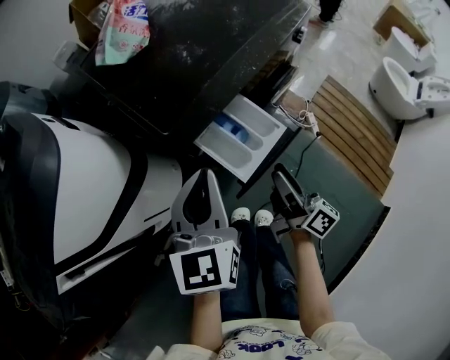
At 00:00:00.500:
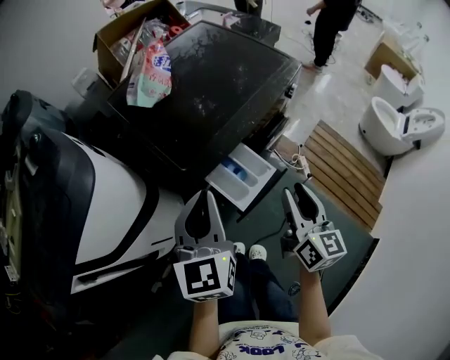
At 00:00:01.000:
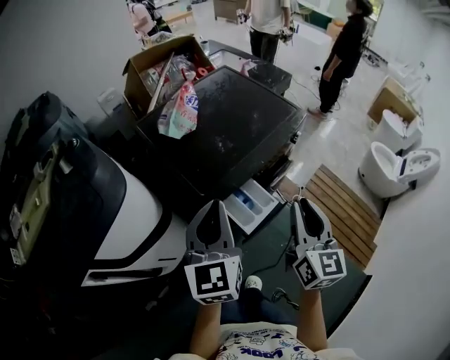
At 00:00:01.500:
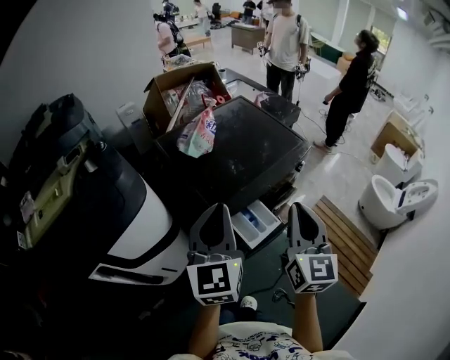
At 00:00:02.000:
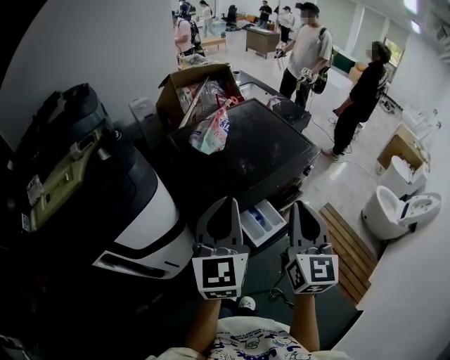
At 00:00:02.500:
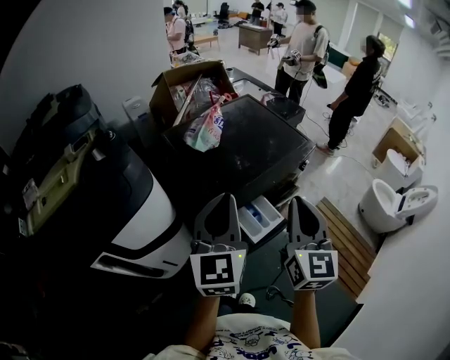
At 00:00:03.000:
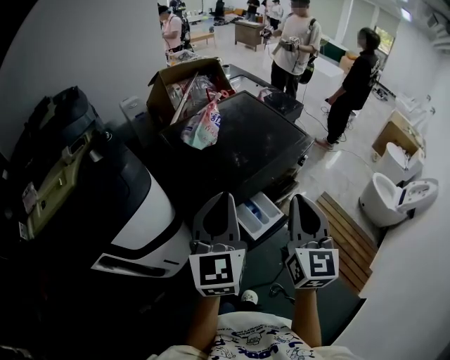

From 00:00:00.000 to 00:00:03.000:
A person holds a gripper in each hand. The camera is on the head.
From 00:00:00.000 to 00:00:01.500: Both grippers travel together upward, about 30 cm. The right gripper rotates around the line of its fingers by about 70 degrees, counterclockwise from behind, and closes.
From 00:00:01.500 to 00:00:03.000: There are only small adjustments of the grippers.

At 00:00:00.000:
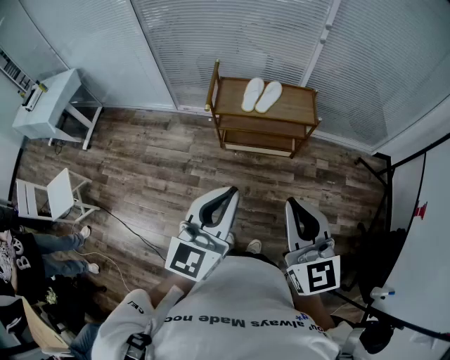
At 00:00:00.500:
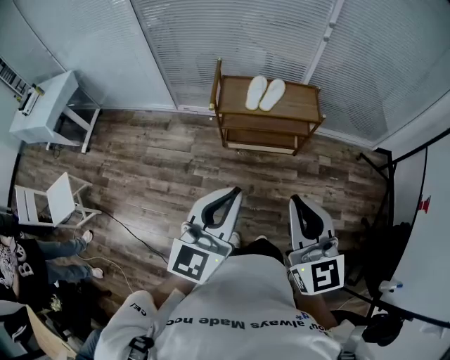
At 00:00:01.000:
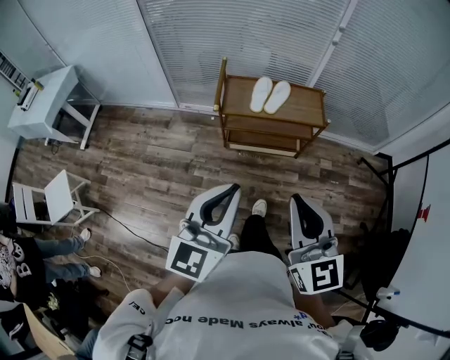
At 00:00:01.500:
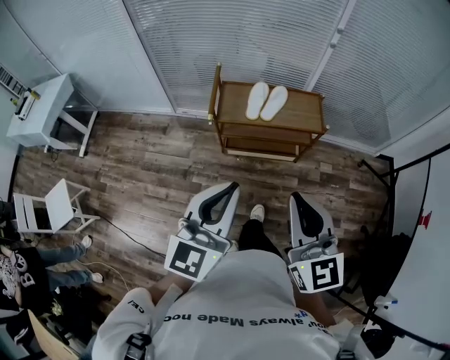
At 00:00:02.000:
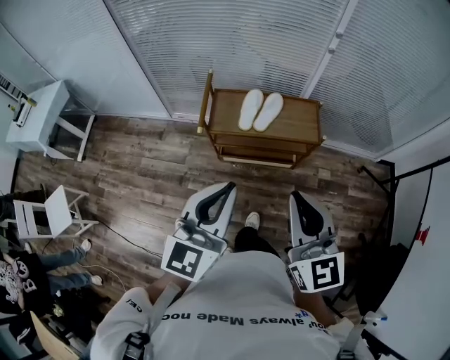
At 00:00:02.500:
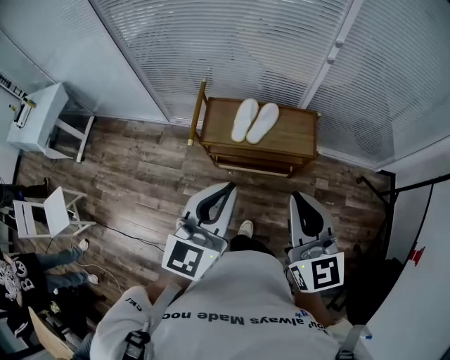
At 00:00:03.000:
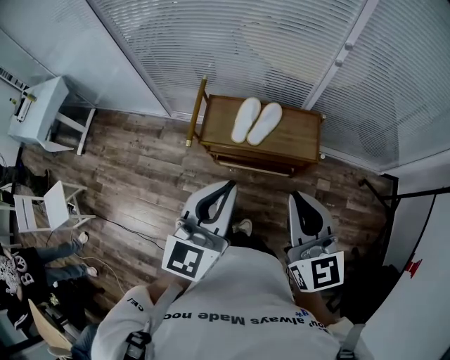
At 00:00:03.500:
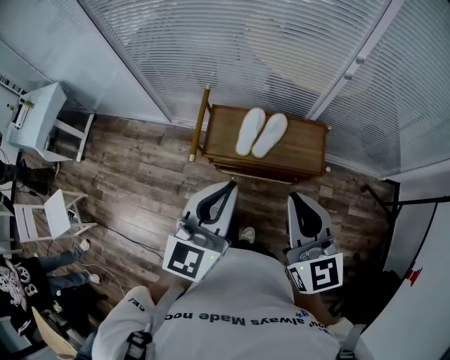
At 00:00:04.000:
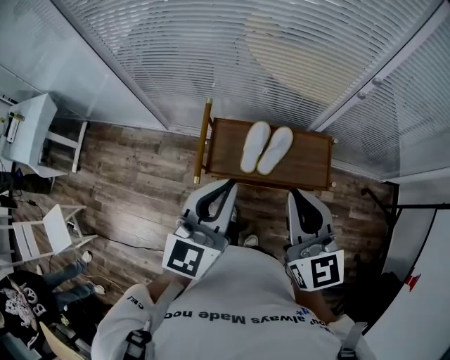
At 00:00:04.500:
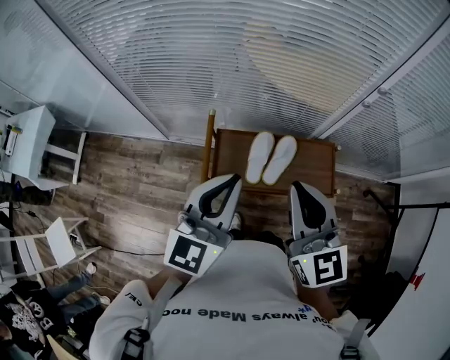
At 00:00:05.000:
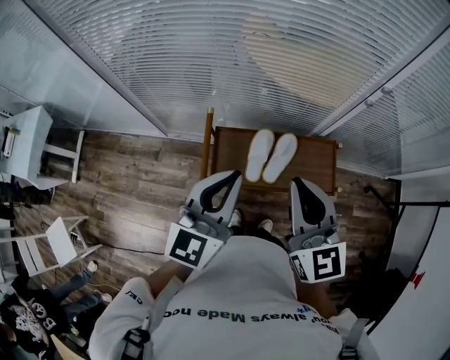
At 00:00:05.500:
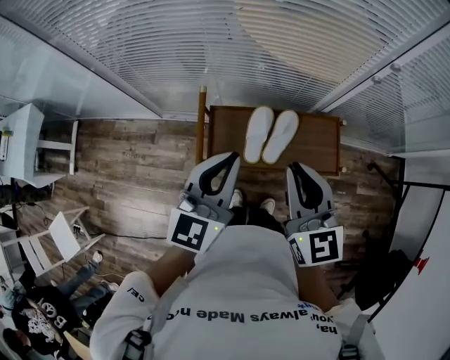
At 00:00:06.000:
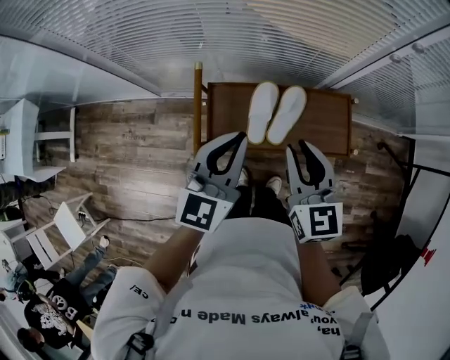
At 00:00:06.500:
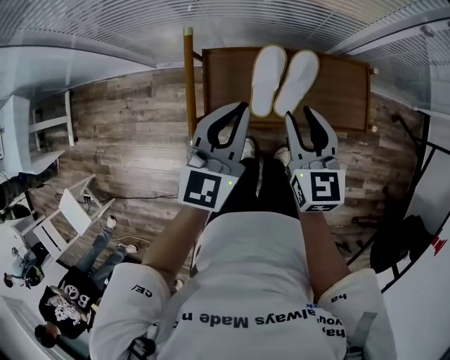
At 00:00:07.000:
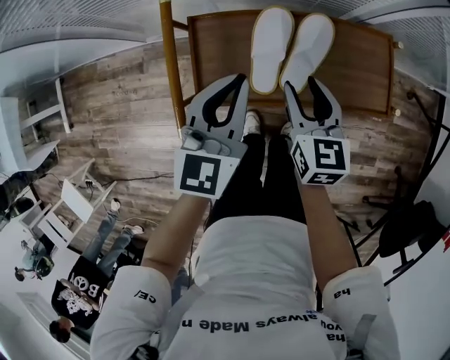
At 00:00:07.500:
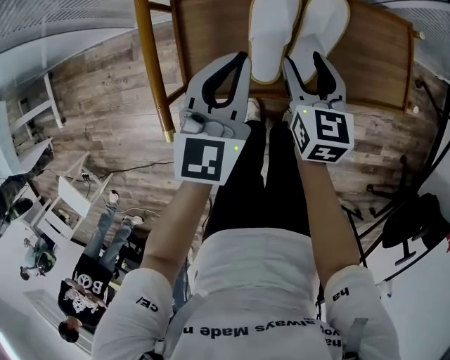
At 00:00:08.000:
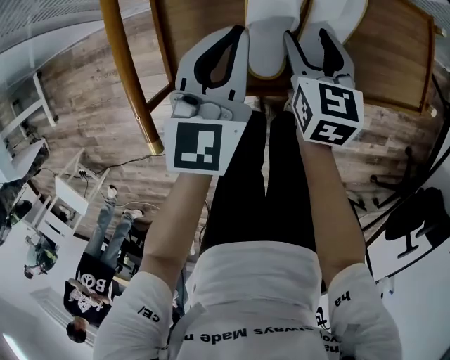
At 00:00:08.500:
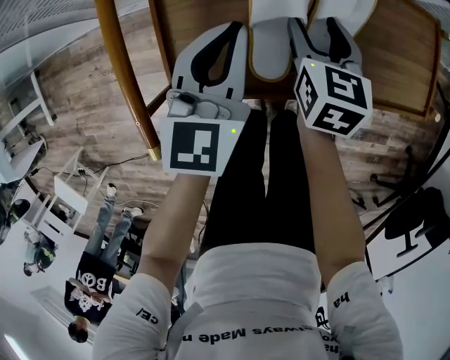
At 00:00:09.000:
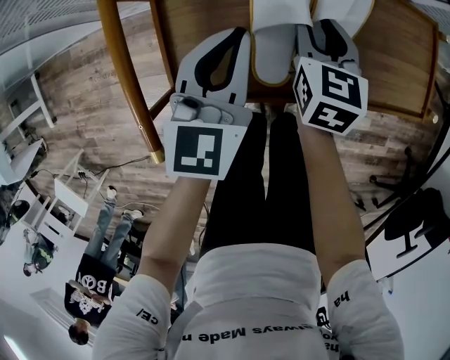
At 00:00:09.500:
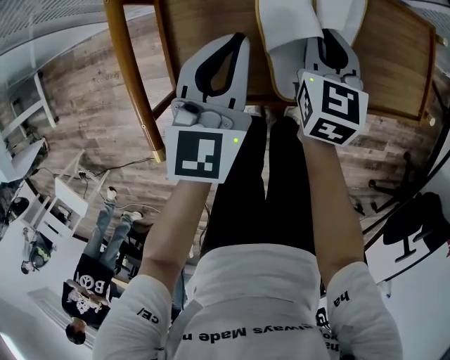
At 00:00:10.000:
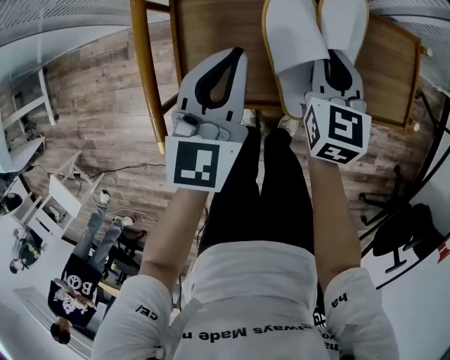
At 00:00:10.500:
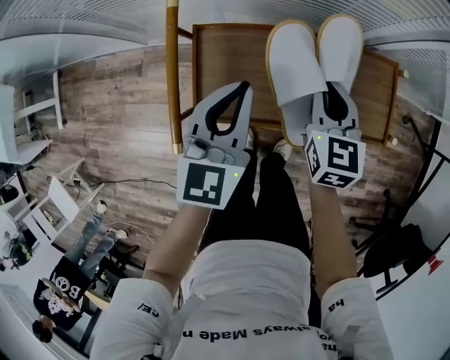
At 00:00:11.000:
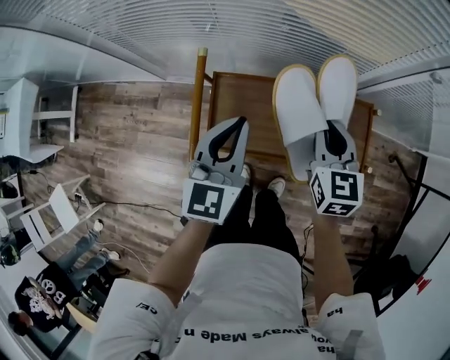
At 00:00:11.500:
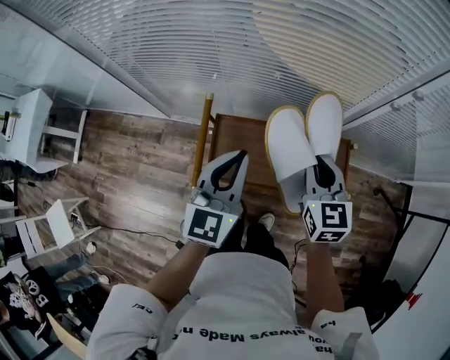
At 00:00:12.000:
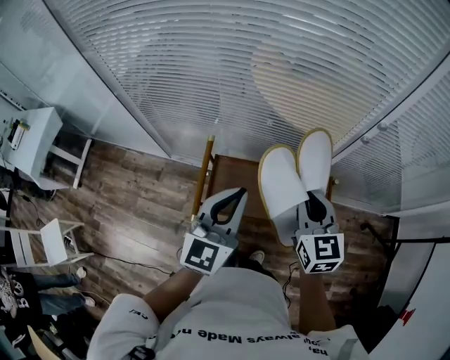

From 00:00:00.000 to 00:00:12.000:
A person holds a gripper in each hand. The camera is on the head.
From 00:00:00.000 to 00:00:02.000: The grippers both shift forward by some 20 cm.
From 00:00:02.000 to 00:00:04.000: Both grippers travel together forward, approximately 30 cm.
From 00:00:04.000 to 00:00:06.000: Both grippers travel together downward and forward, some 15 cm.
From 00:00:06.000 to 00:00:08.000: Both grippers move downward, approximately 35 cm. The right gripper swivels about 20 degrees, and opens.
From 00:00:08.000 to 00:00:10.000: The left gripper changes place by about 5 cm. The right gripper heads upward, covering about 5 cm, and closes up.
From 00:00:10.000 to 00:00:12.000: The grippers both shift upward by about 35 cm. The right gripper changes its angle by roughly 20 degrees.

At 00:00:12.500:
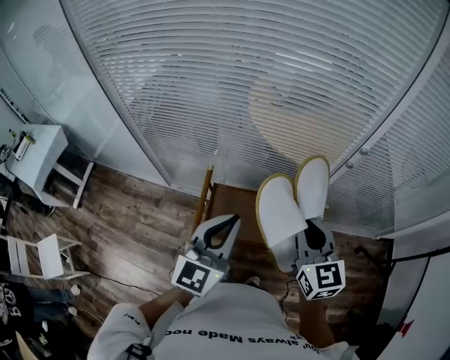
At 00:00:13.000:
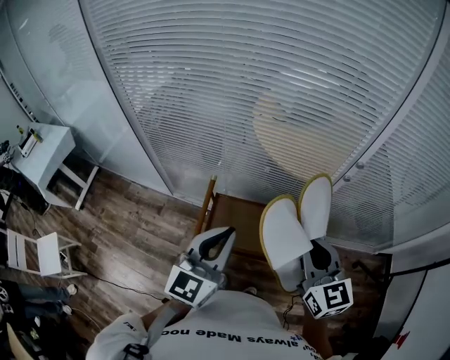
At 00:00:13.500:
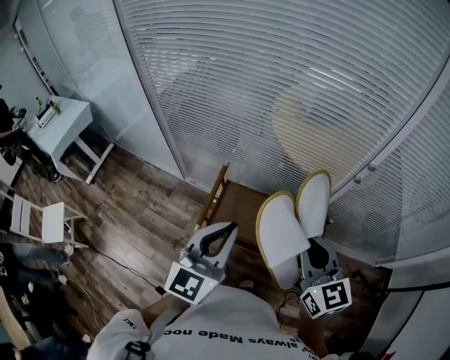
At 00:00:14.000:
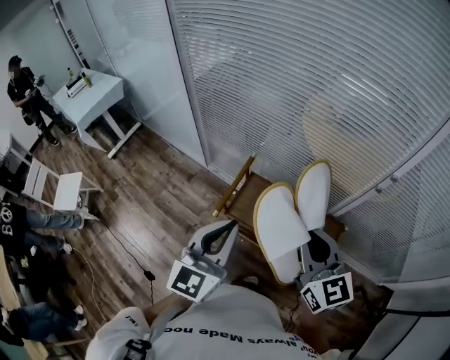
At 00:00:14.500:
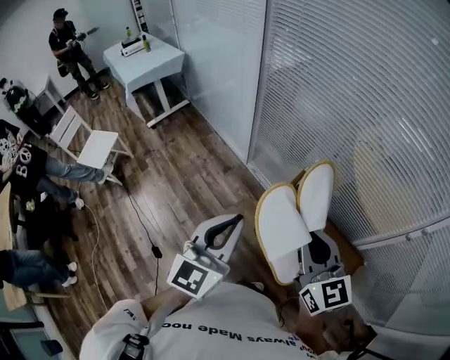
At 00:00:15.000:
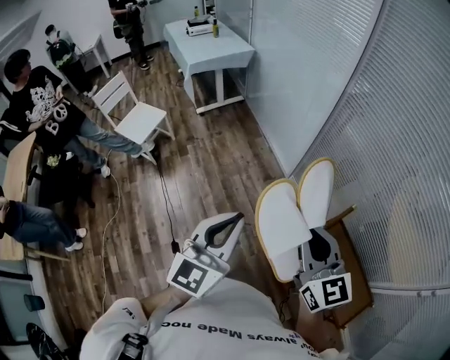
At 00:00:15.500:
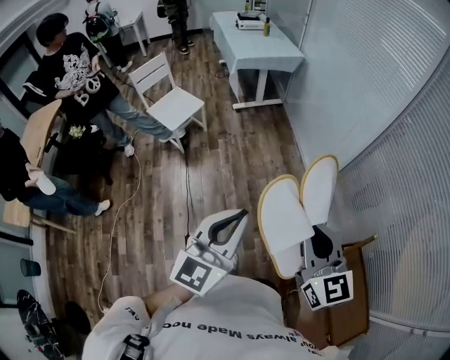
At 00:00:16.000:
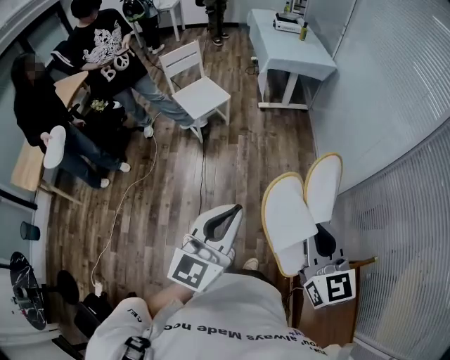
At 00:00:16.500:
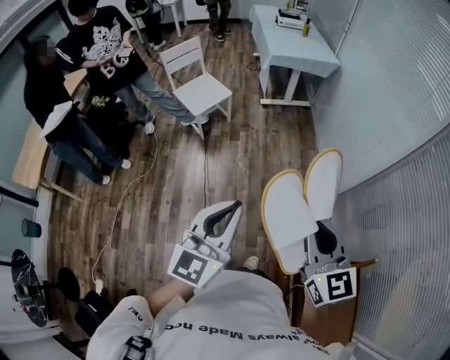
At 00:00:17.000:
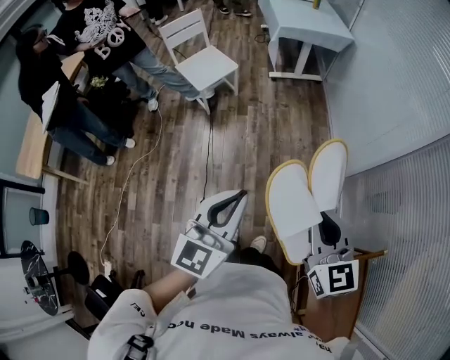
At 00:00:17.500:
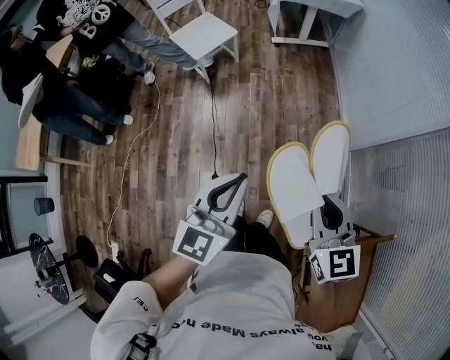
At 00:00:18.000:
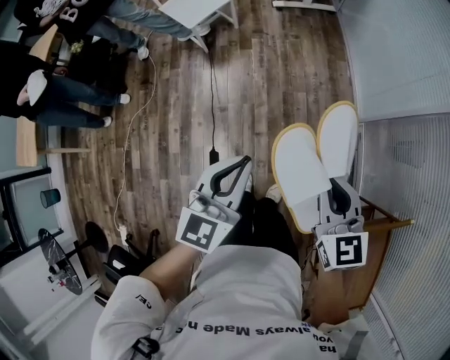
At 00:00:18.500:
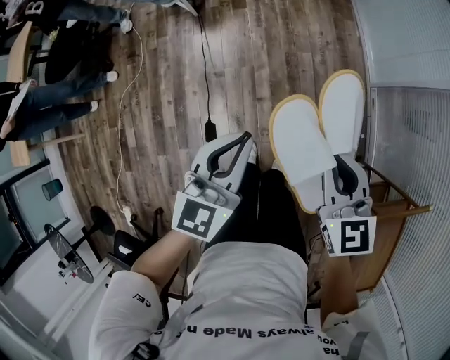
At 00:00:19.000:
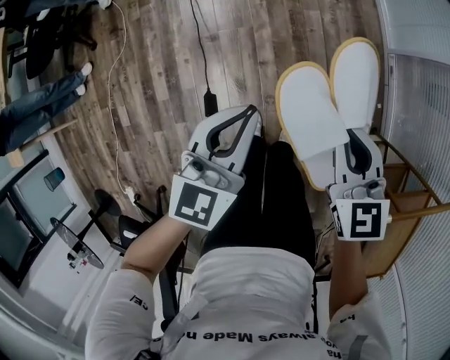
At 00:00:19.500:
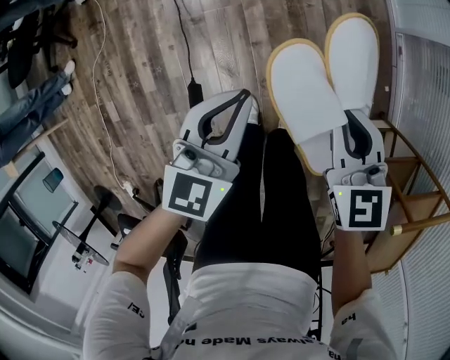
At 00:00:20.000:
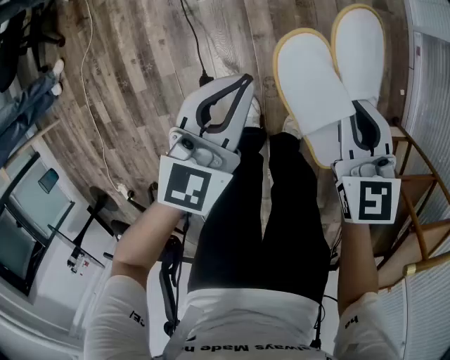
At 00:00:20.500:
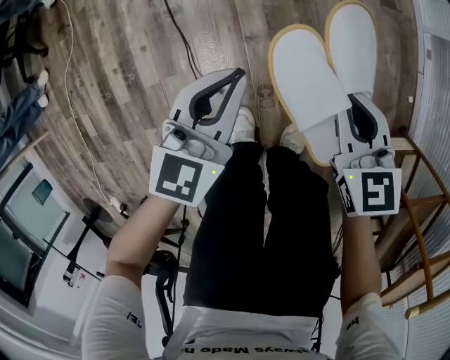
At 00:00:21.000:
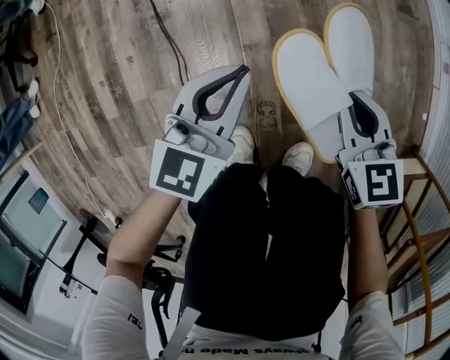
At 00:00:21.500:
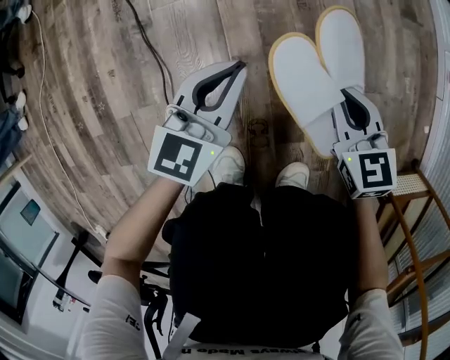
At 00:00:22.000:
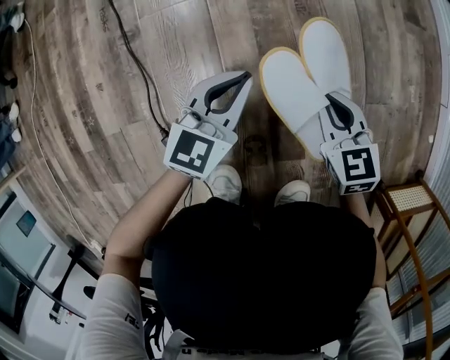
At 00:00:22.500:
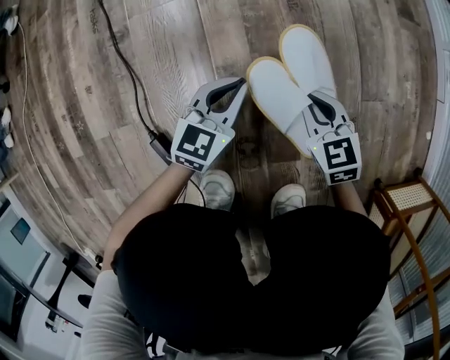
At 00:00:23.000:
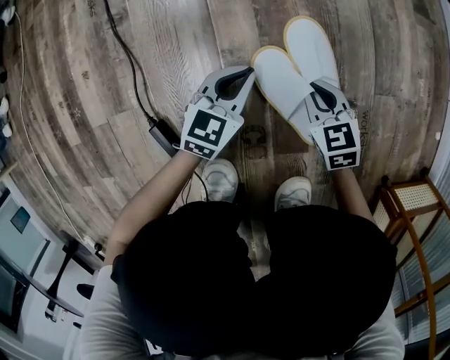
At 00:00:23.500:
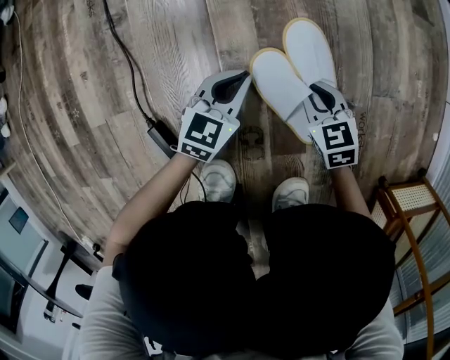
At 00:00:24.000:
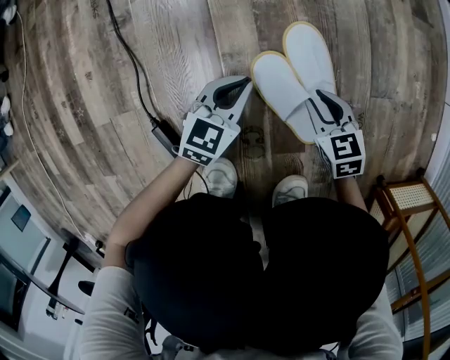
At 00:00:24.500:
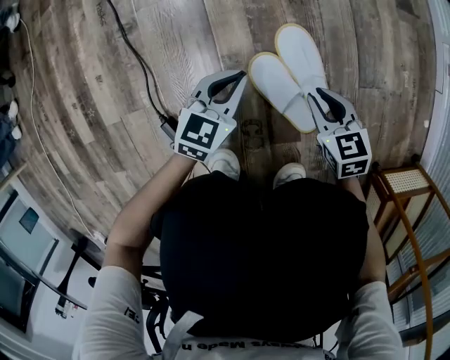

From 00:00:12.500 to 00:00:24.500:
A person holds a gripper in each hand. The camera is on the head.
From 00:00:12.500 to 00:00:14.500: The right gripper ends up roughly 25 cm from where it was, and changes its angle by some 40 degrees; the left gripper changes place by about 25 cm, and swivels approximately 40 degrees.
From 00:00:14.500 to 00:00:16.500: The left gripper ends up some 40 cm from where it was, and rotates roughly 40 degrees. Meanwhile the right gripper changes place by roughly 40 cm, and rotates roughly 40 degrees.
From 00:00:16.500 to 00:00:18.500: Both grippers move downward, approximately 30 cm. The right gripper rotates roughly 20 degrees.
From 00:00:18.500 to 00:00:20.500: Both grippers travel together downward, approximately 50 cm.
From 00:00:20.500 to 00:00:22.500: The two grippers go roughly 40 cm downward.
From 00:00:22.500 to 00:00:24.500: The right gripper moves some 5 cm downward and comes back.
